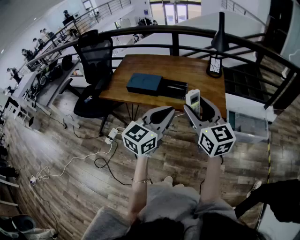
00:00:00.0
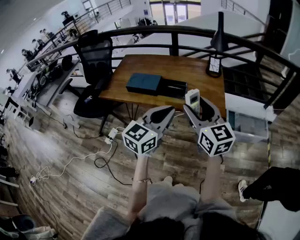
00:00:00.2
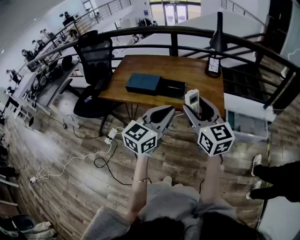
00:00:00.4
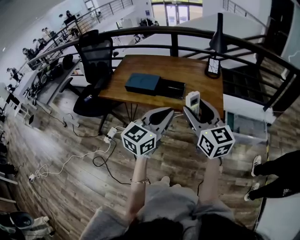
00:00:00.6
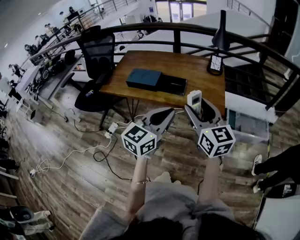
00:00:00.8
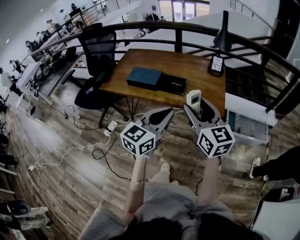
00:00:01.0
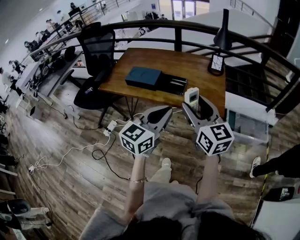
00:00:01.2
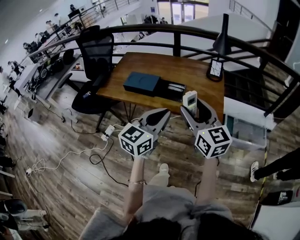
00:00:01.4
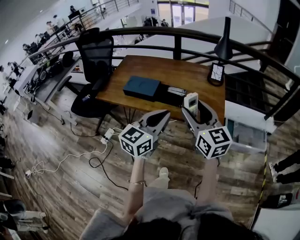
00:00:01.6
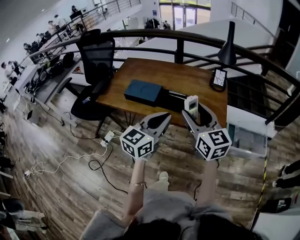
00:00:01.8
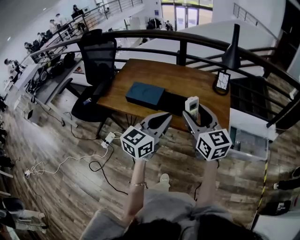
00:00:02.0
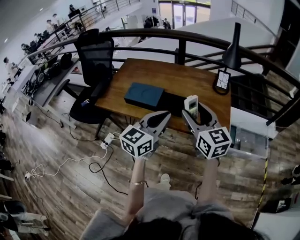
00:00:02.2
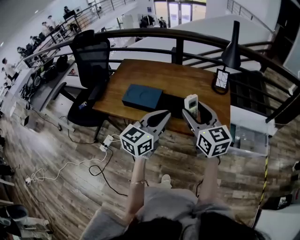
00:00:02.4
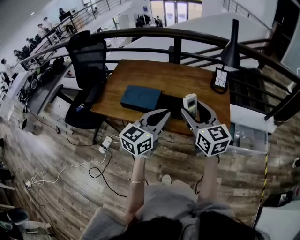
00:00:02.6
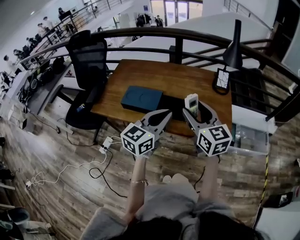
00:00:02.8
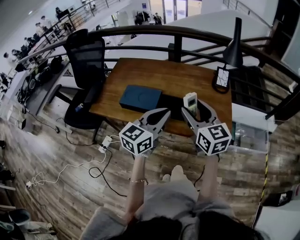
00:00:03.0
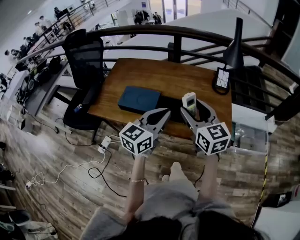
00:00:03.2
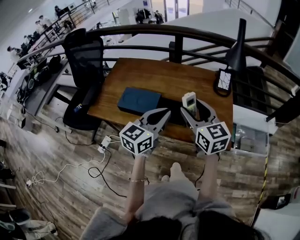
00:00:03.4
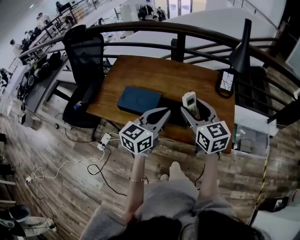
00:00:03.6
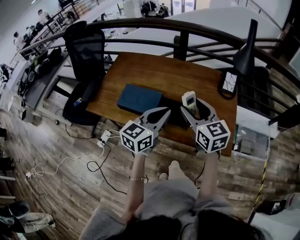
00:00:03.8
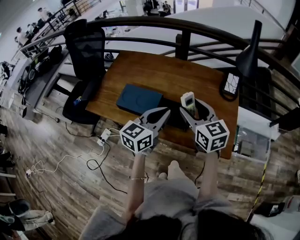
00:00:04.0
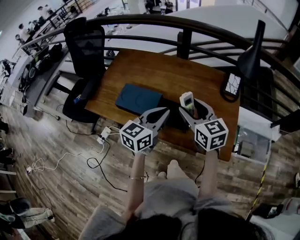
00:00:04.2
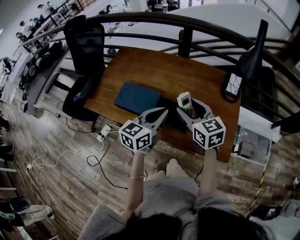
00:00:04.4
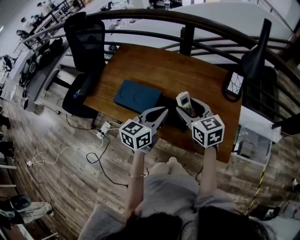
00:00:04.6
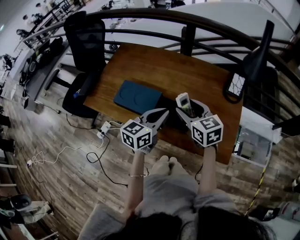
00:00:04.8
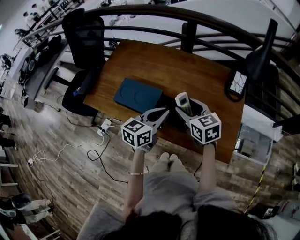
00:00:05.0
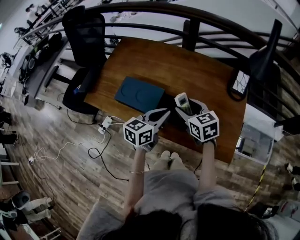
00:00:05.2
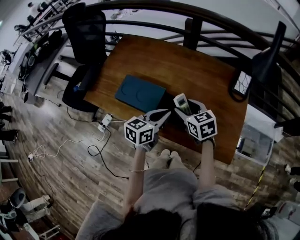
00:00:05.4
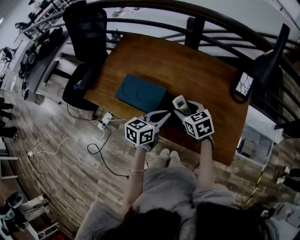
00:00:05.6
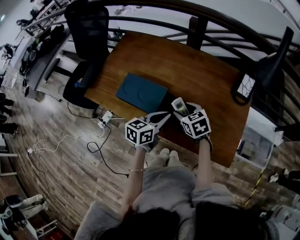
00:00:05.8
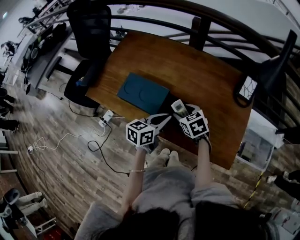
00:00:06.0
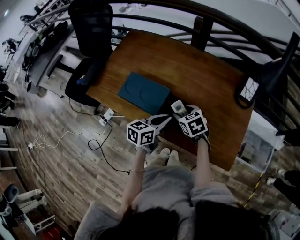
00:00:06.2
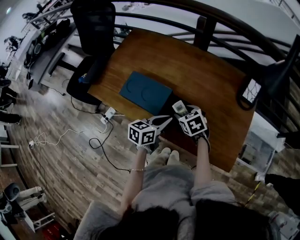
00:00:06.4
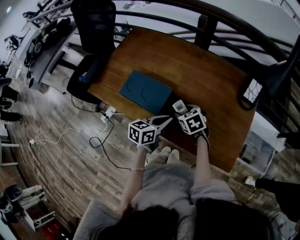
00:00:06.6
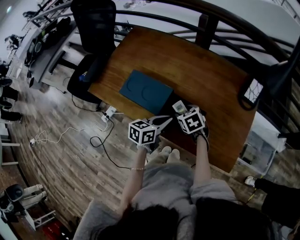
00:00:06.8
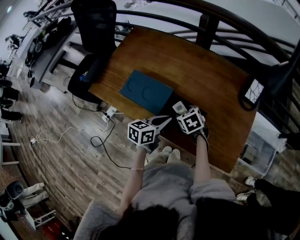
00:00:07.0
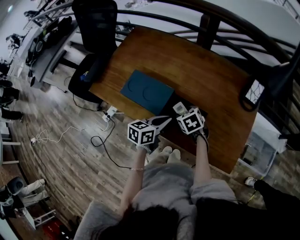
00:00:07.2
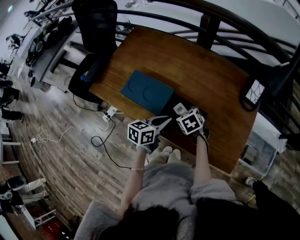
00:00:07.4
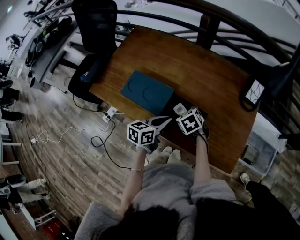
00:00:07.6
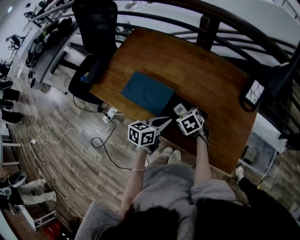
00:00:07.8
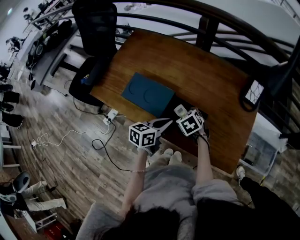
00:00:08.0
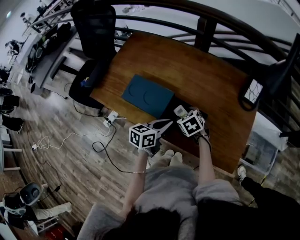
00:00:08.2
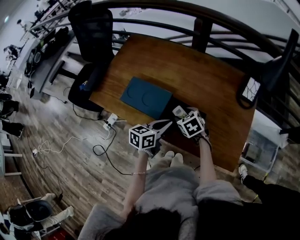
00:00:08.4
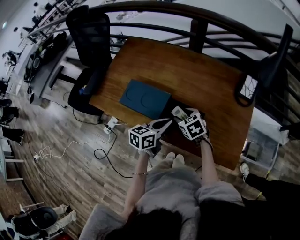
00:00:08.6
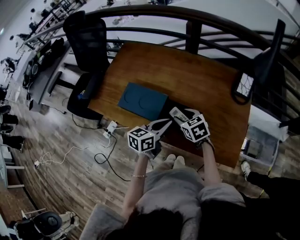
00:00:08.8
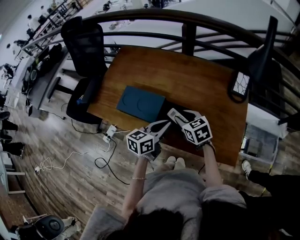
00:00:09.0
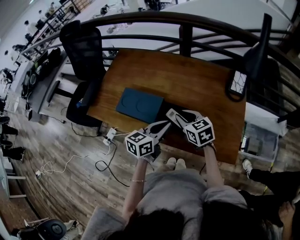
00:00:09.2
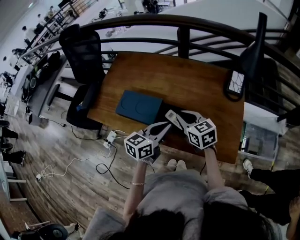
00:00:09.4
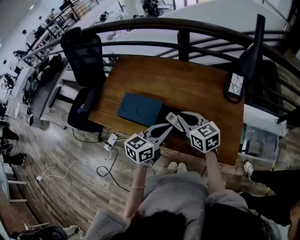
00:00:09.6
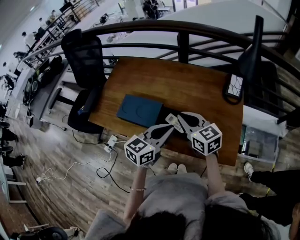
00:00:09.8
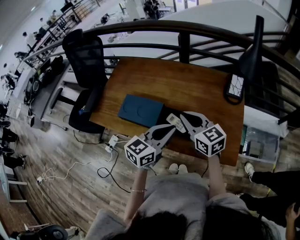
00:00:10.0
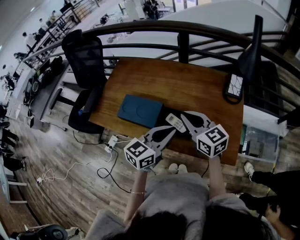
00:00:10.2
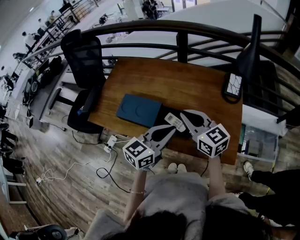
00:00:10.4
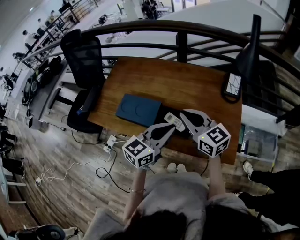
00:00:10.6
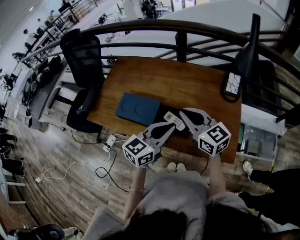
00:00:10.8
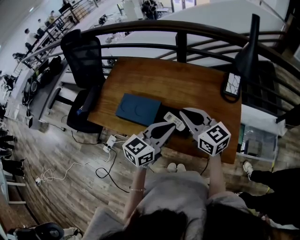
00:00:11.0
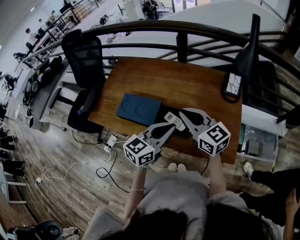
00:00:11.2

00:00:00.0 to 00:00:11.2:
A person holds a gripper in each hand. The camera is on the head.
00:00:00.0 to 00:00:01.6: Both grippers move forward, some 5 cm.
00:00:01.6 to 00:00:03.2: Both grippers move forward, approximately 15 cm.
00:00:03.2 to 00:00:04.8: Both grippers travel together forward and downward, roughly 15 cm. The right gripper changes its angle by roughly 20 degrees.
00:00:04.8 to 00:00:06.4: Both grippers travel together downward, roughly 15 cm. The right gripper turns by some 30 degrees.
00:00:06.4 to 00:00:08.0: The grippers make only small movements.
00:00:08.0 to 00:00:09.6: The right gripper is displaced upward by approximately 20 cm, angles its fingers upward, by approximately 40 degrees, and closes its fingers; the left gripper goes about 10 cm upward, and turns by approximately 20 degrees.
00:00:09.6 to 00:00:11.2: The right gripper is displaced upward by some 5 cm.

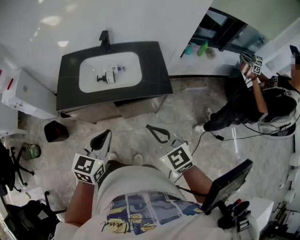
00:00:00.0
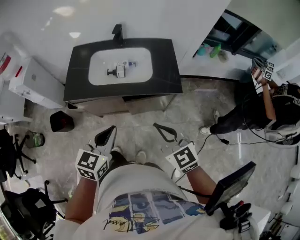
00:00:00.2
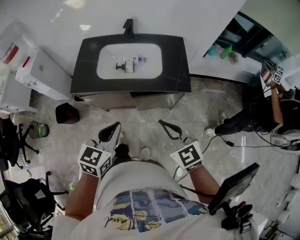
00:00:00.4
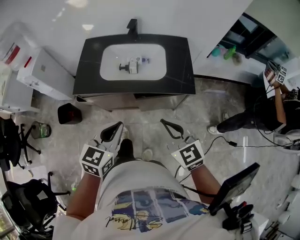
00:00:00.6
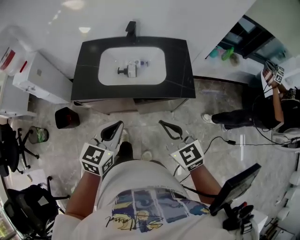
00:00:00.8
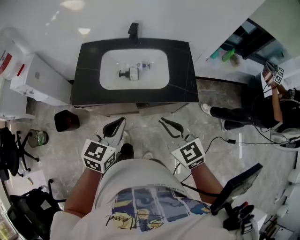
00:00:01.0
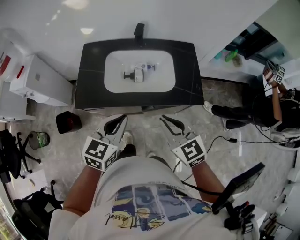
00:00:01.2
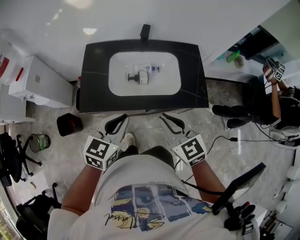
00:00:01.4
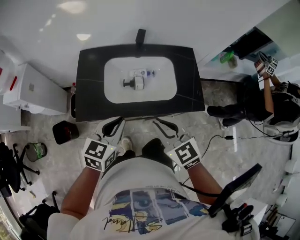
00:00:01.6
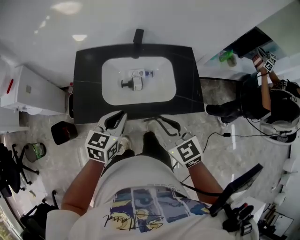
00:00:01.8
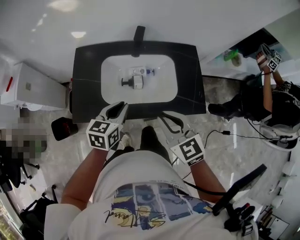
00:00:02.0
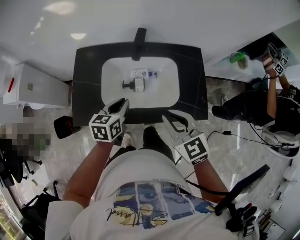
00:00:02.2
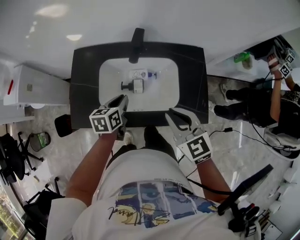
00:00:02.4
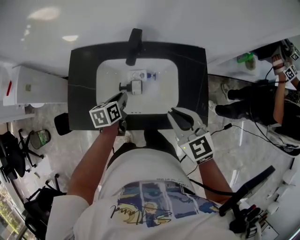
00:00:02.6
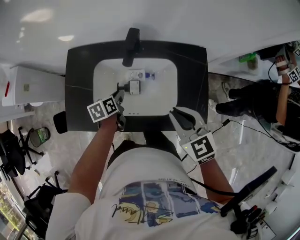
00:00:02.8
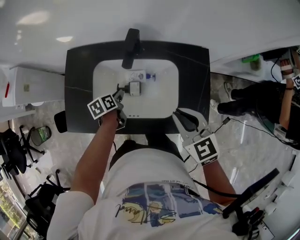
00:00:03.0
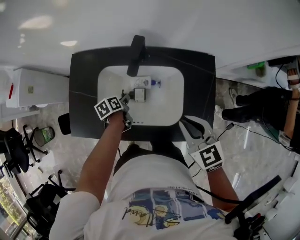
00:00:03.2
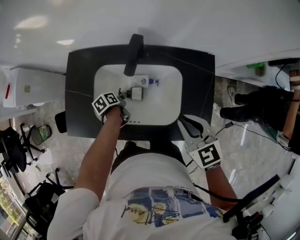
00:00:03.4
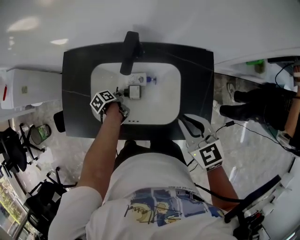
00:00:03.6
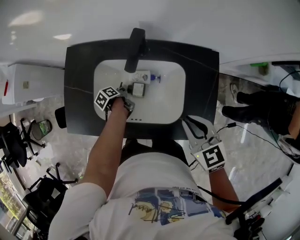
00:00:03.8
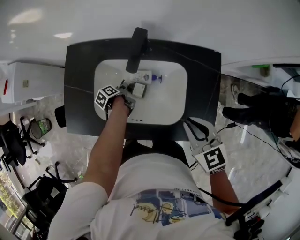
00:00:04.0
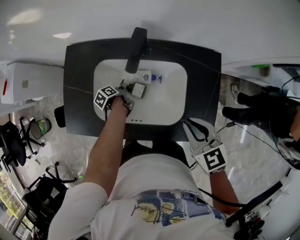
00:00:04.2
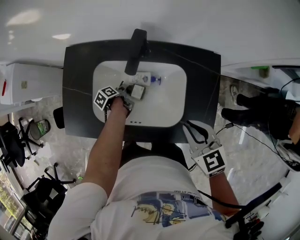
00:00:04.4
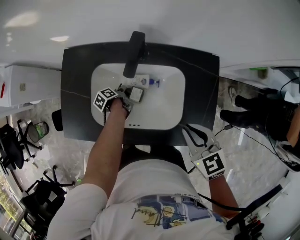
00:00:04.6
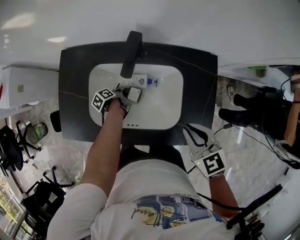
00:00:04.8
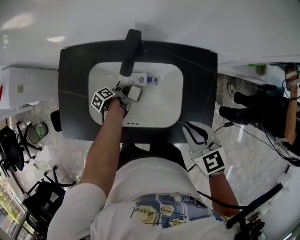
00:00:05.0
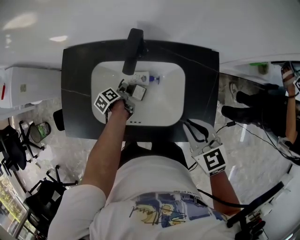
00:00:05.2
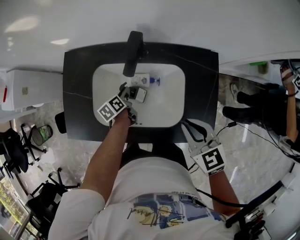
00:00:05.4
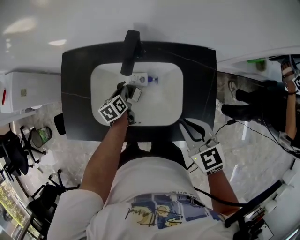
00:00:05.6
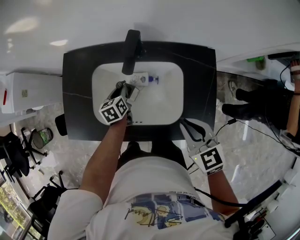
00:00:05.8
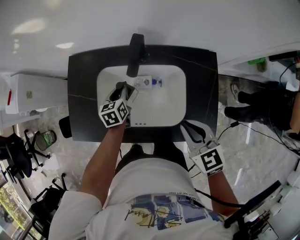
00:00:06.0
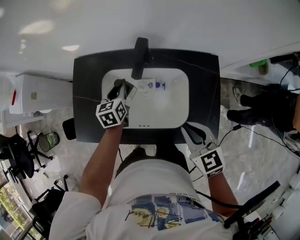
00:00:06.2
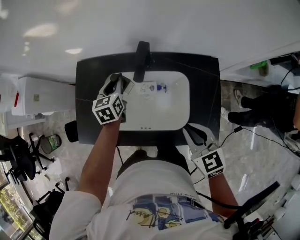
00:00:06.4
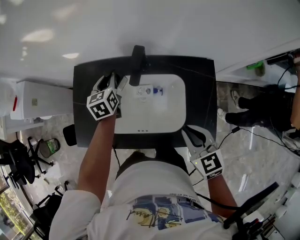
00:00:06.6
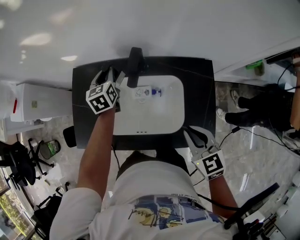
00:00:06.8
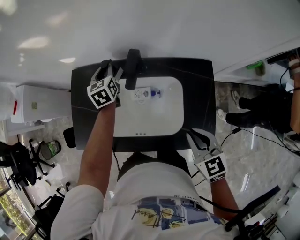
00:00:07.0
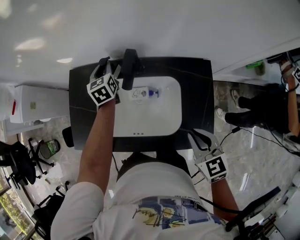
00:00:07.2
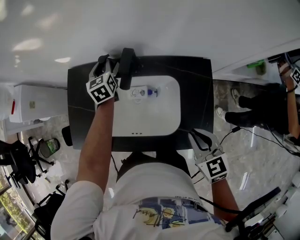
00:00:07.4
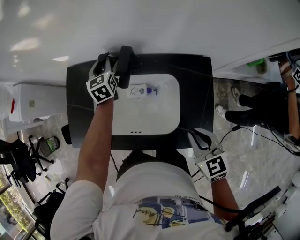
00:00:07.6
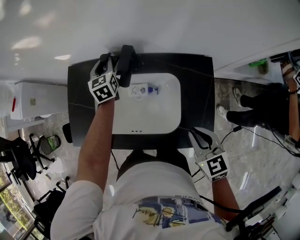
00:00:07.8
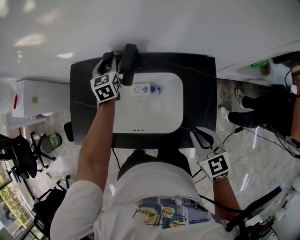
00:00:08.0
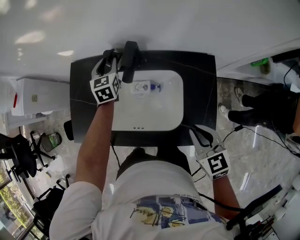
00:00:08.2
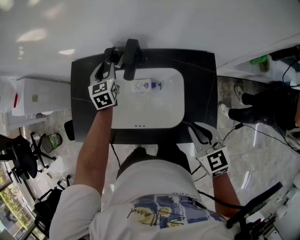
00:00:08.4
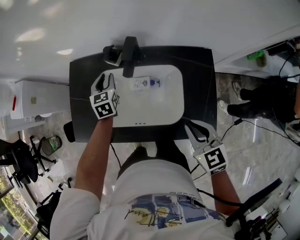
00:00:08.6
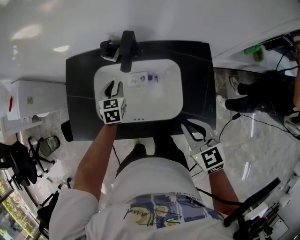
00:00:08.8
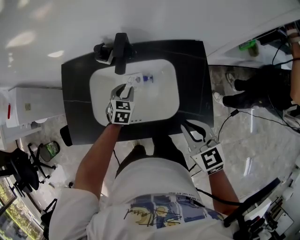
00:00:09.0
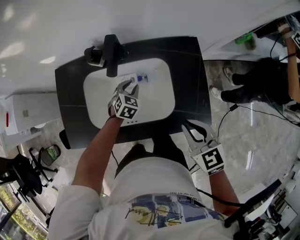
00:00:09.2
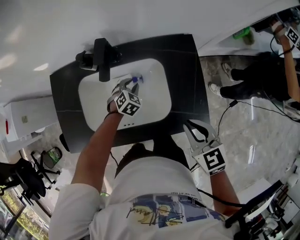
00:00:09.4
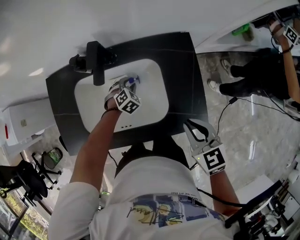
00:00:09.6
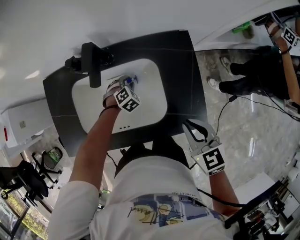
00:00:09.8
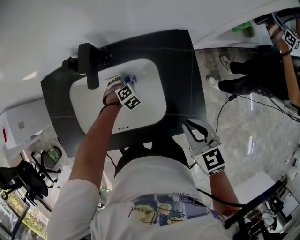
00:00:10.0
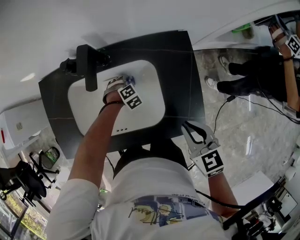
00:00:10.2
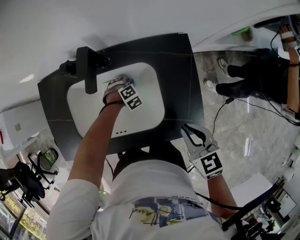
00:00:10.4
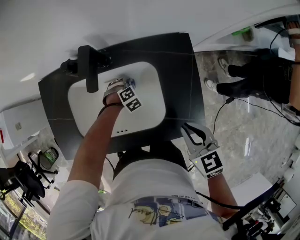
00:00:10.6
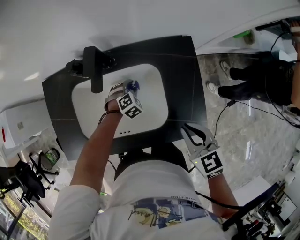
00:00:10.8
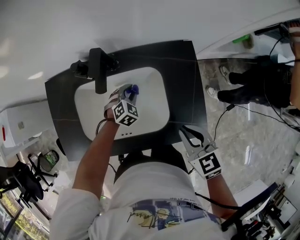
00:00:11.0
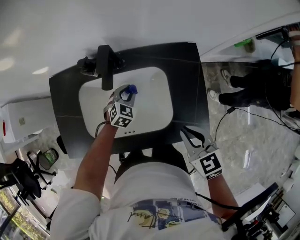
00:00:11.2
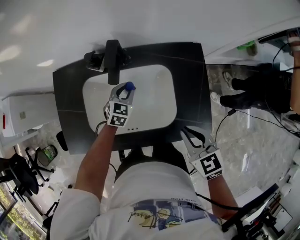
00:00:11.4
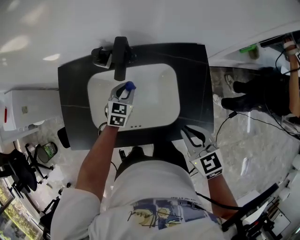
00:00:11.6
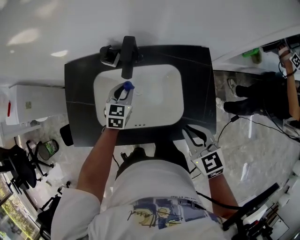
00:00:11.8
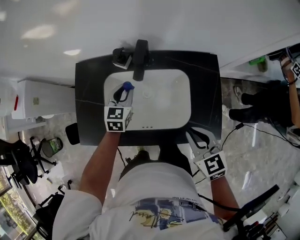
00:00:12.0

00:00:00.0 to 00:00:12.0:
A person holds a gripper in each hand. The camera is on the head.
00:00:00.0 to 00:00:01.6: The two grippers go about 20 cm forward and to the left.
00:00:01.6 to 00:00:03.0: The right gripper heads forward and to the right, covering approximately 25 cm; the left gripper is displaced downward and forward by roughly 35 cm, and rolls counterclockwise, seen from behind, by some 50 degrees.
00:00:03.0 to 00:00:04.4: The left gripper travels downward by approximately 10 cm, and turns by about 40 degrees.
00:00:04.4 to 00:00:06.0: The left gripper is displaced upward by some 15 cm, and twists about 60 degrees clockwise, seen from behind.
00:00:06.0 to 00:00:07.6: The right gripper travels to the right by approximately 5 cm, while the left gripper travels forward and upward by roughly 20 cm, and rotates roughly 20 degrees.
00:00:07.6 to 00:00:09.0: The left gripper is displaced backward and downward by roughly 25 cm, and turns by roughly 40 degrees; the right gripper is displaced to the left by about 5 cm.
00:00:09.0 to 00:00:10.4: The left gripper shifts about 15 cm downward, and twists some 50 degrees clockwise, seen from behind. Meanwhile the right gripper changes place by roughly 10 cm.
00:00:10.4 to 00:00:12.0: The left gripper shifts some 25 cm upward, and tilts its fingers approximately 50 degrees upward. The right gripper shifts by some 10 cm.
